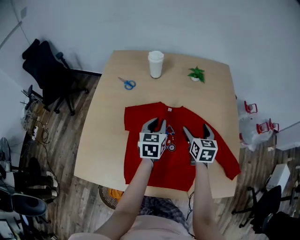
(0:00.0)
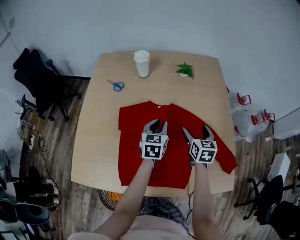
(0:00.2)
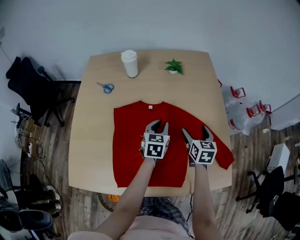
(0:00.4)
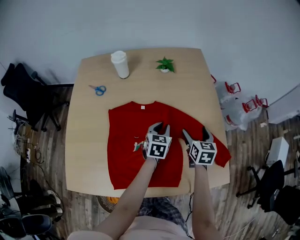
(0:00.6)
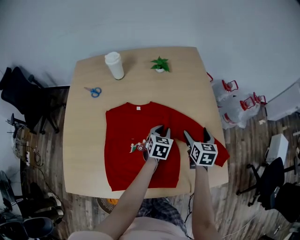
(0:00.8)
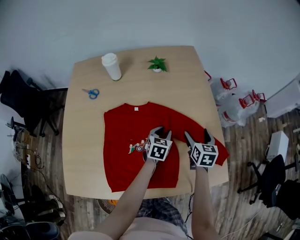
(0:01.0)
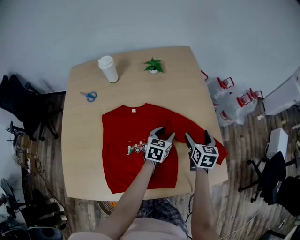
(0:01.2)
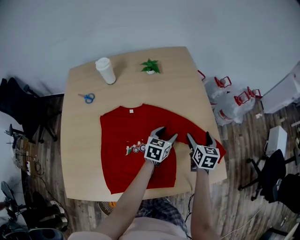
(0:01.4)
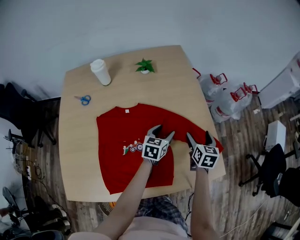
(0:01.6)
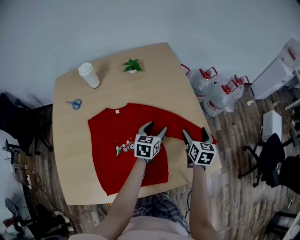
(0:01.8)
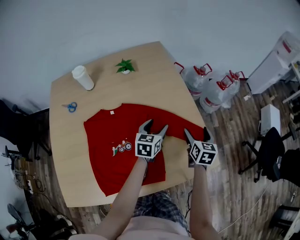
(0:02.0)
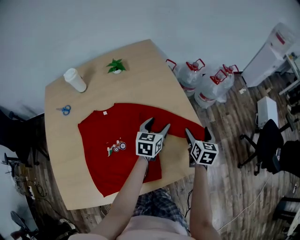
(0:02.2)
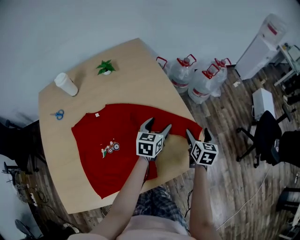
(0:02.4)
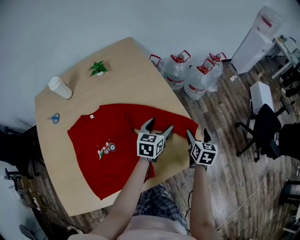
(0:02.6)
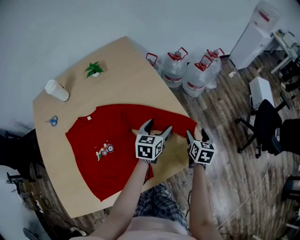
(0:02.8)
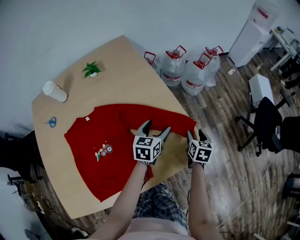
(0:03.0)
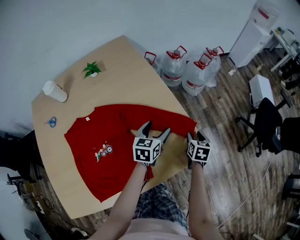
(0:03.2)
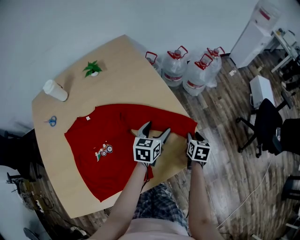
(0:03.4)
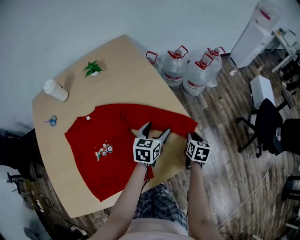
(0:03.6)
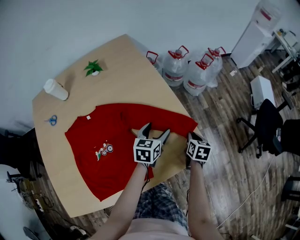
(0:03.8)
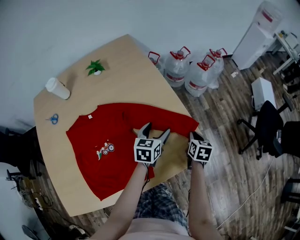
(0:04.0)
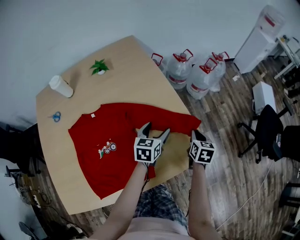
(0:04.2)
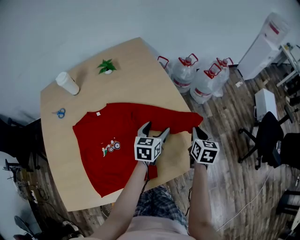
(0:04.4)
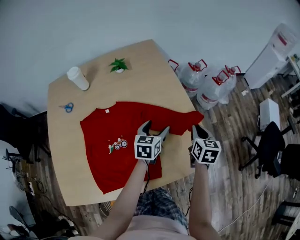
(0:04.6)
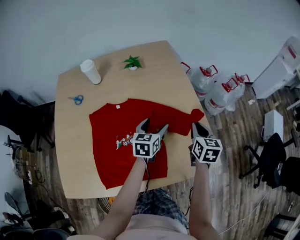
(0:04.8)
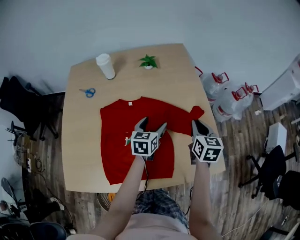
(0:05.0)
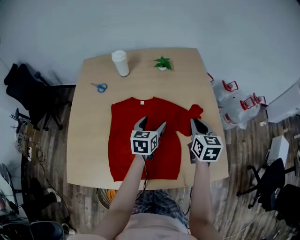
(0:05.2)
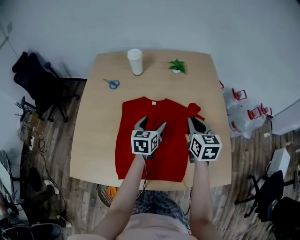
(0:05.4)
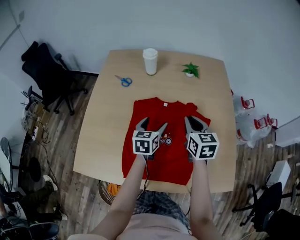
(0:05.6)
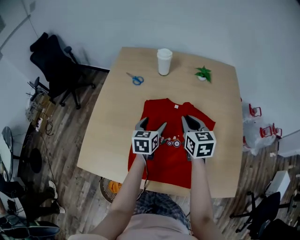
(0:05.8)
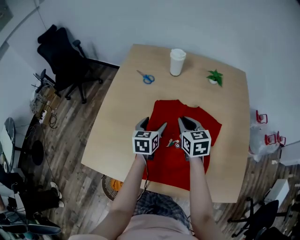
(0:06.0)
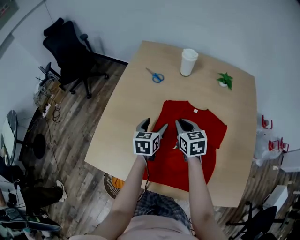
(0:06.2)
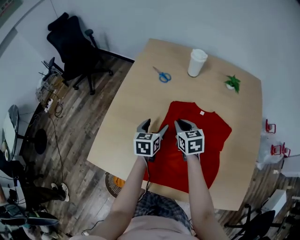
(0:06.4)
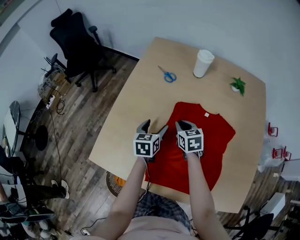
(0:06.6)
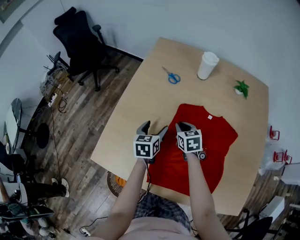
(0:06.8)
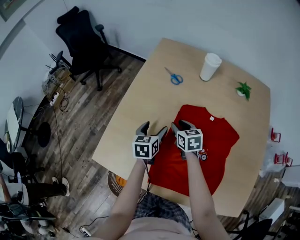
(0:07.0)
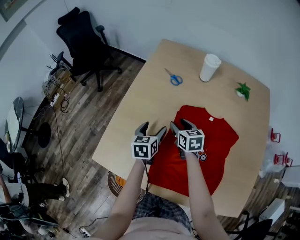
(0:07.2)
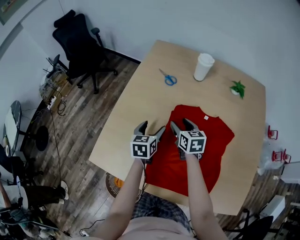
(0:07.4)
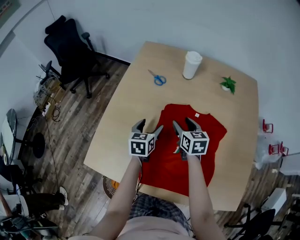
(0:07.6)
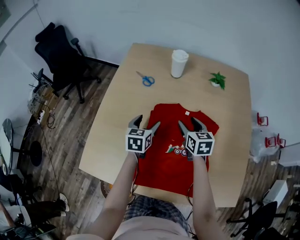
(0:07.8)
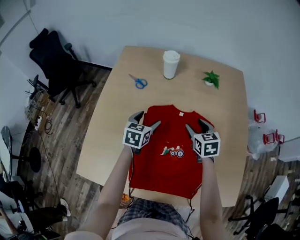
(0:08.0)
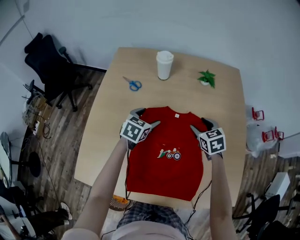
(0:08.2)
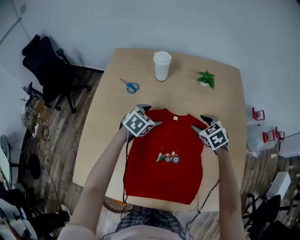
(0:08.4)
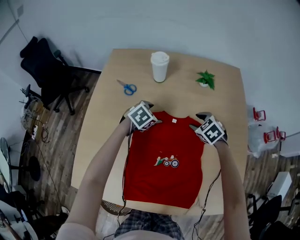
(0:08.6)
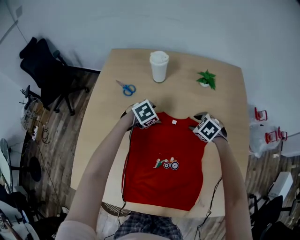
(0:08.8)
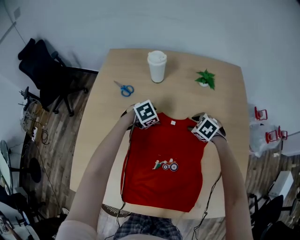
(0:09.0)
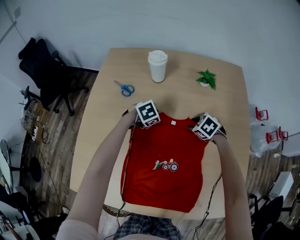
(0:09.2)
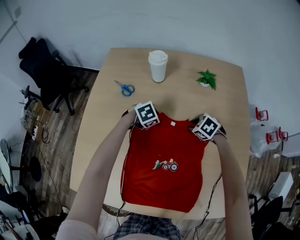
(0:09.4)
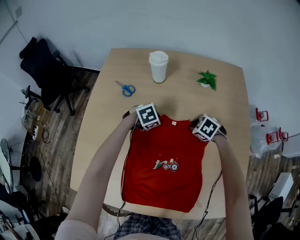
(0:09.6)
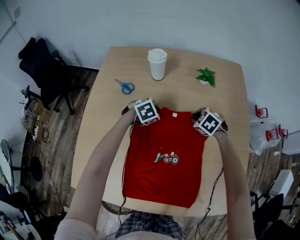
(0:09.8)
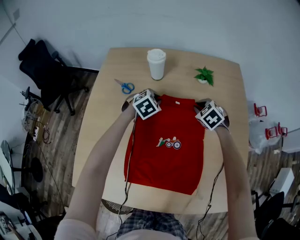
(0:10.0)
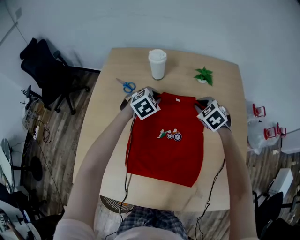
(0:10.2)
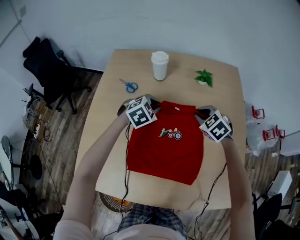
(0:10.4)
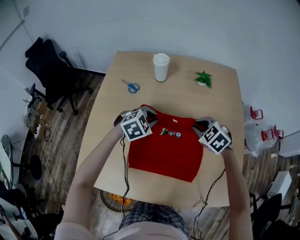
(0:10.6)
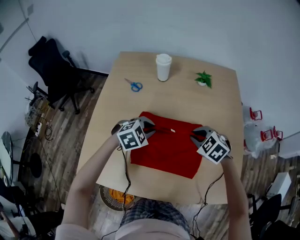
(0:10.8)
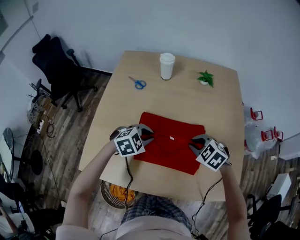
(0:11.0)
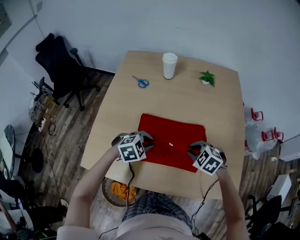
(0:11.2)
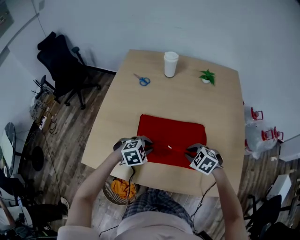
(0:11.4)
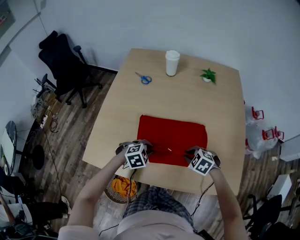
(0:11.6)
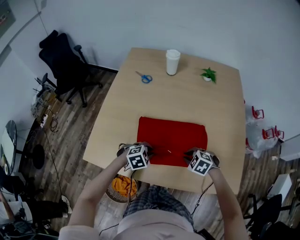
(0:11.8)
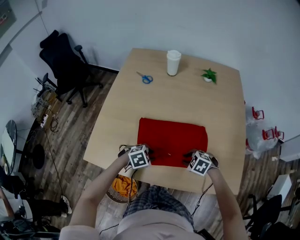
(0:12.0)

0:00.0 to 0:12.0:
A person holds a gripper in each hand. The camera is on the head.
0:00.0 to 0:01.6: The right gripper moves about 25 cm, and swivels about 30 degrees. The left gripper changes place by some 25 cm, swivels roughly 30 degrees, and opens its fingers.
0:01.6 to 0:03.0: The grippers both shift to the right by roughly 20 cm. The right gripper swivels approximately 20 degrees, and closes up.
0:03.0 to 0:04.4: The left gripper ends up about 5 cm from where it was. The right gripper travels upward and to the left by roughly 10 cm, and closes its fingers.
0:04.4 to 0:06.0: Both grippers are carried approximately 50 cm. The right gripper changes its angle by about 60 degrees. Meanwhile the left gripper swivels about 40 degrees.
0:06.0 to 0:07.6: The left gripper shifts some 5 cm to the left. Meanwhile the right gripper moves downward, roughly 5 cm, and opens.
0:07.6 to 0:09.0: The right gripper shifts roughly 25 cm to the right, downward and forward, and tilts its fingers about 30 degrees downward; the left gripper moves forward, to the right and downward, some 25 cm, and tips its fingers downward by roughly 30 degrees.
0:09.0 to 0:10.4: The two grippers go approximately 15 cm upward. The left gripper swivels approximately 30 degrees, and closes up.
0:10.4 to 0:12.0: The left gripper changes place by about 35 cm, and changes its angle by approximately 20 degrees, while the right gripper ends up approximately 35 cm from where it was, and turns by approximately 30 degrees.

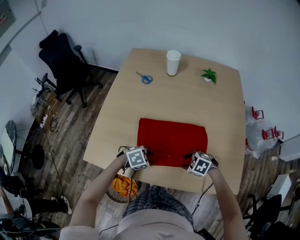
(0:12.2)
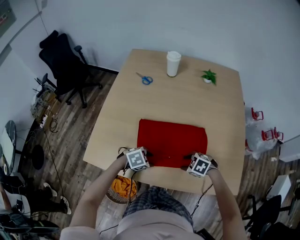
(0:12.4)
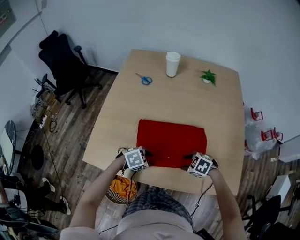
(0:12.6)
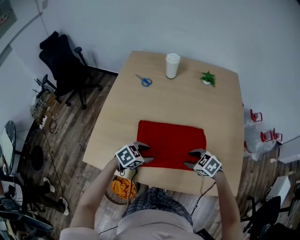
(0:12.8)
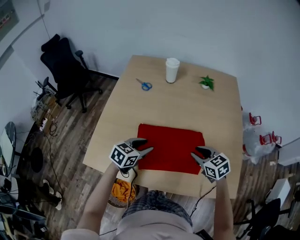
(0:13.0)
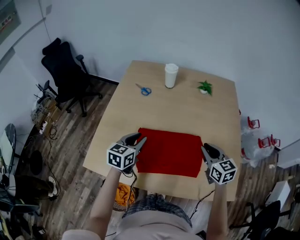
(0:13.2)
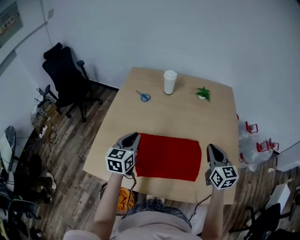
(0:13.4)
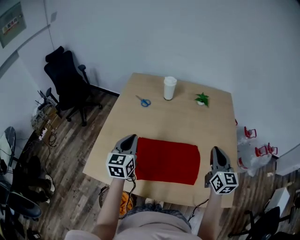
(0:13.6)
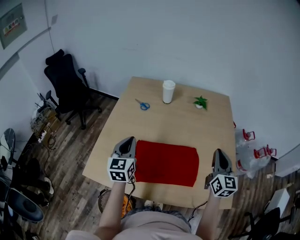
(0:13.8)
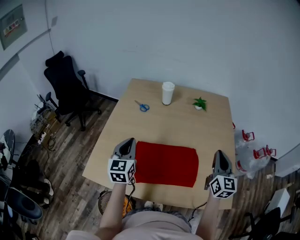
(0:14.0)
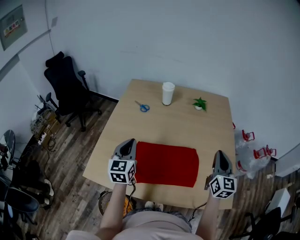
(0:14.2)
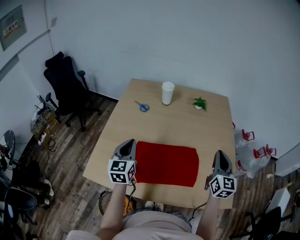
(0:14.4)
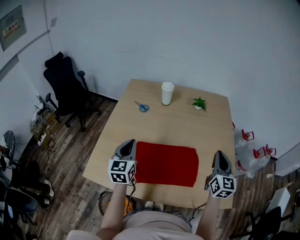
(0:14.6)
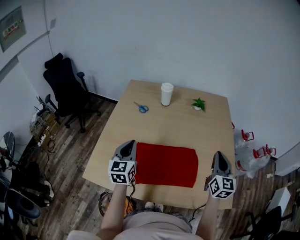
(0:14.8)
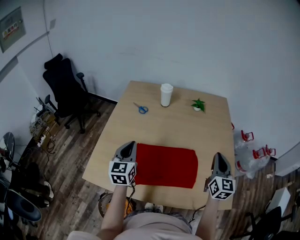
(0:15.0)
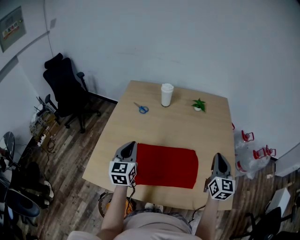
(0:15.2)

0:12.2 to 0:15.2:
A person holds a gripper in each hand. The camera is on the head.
0:12.2 to 0:13.8: The two grippers go approximately 25 cm upward. The left gripper tilts its fingers approximately 50 degrees upward, and closes its fingers. The right gripper angles its fingers upward, by some 60 degrees, and closes its fingers.
0:13.8 to 0:15.2: The grippers make only small movements.

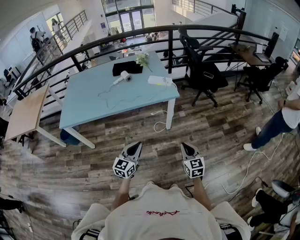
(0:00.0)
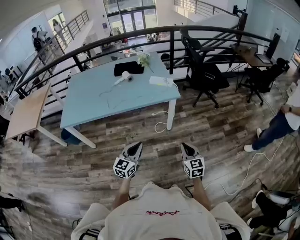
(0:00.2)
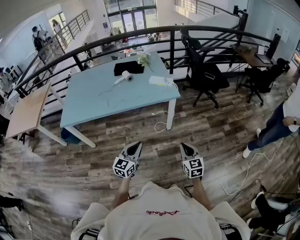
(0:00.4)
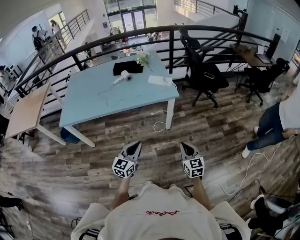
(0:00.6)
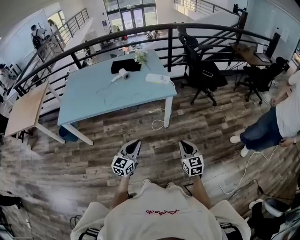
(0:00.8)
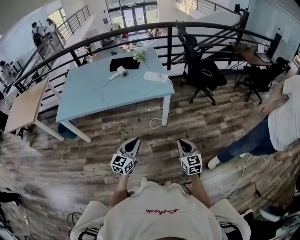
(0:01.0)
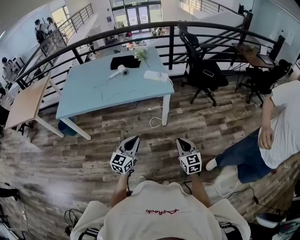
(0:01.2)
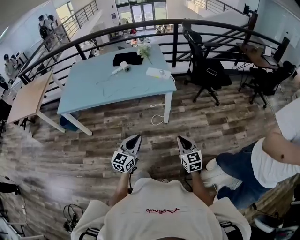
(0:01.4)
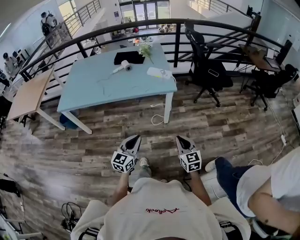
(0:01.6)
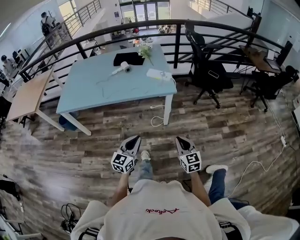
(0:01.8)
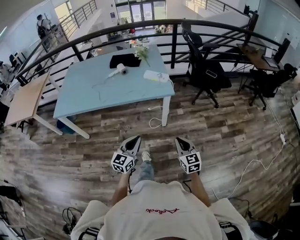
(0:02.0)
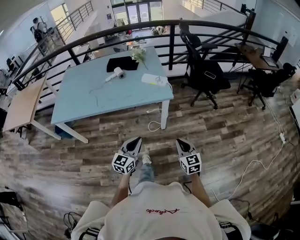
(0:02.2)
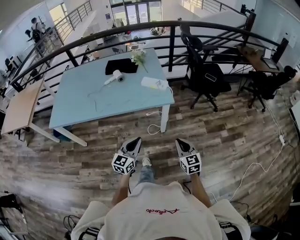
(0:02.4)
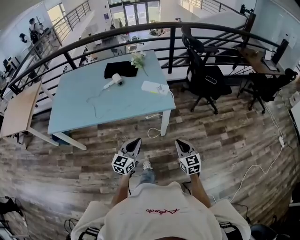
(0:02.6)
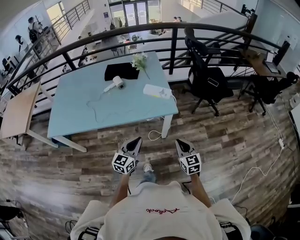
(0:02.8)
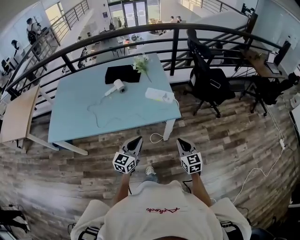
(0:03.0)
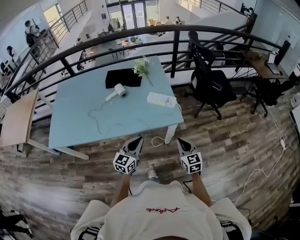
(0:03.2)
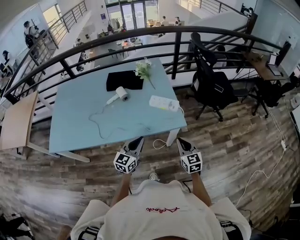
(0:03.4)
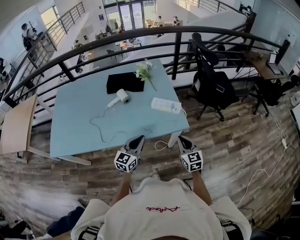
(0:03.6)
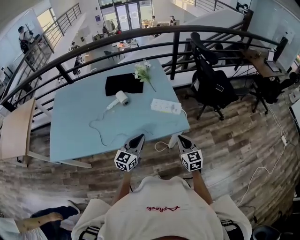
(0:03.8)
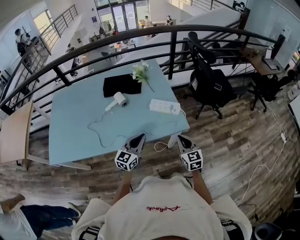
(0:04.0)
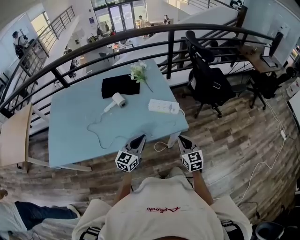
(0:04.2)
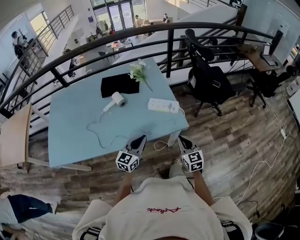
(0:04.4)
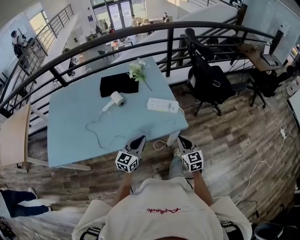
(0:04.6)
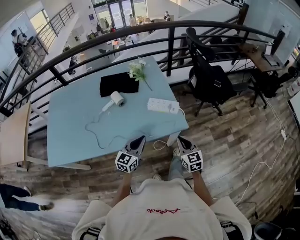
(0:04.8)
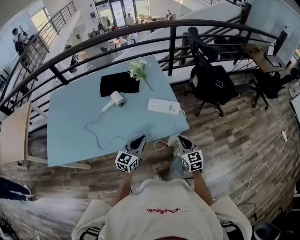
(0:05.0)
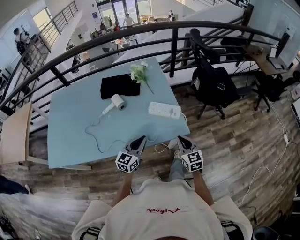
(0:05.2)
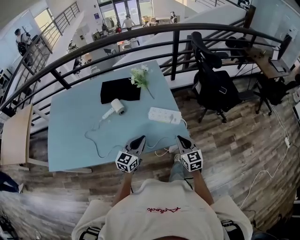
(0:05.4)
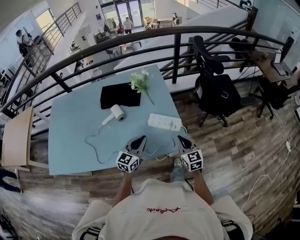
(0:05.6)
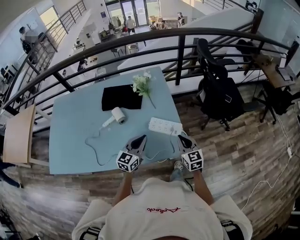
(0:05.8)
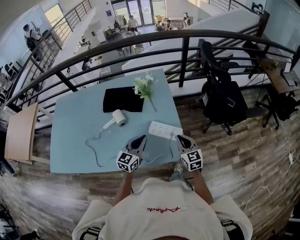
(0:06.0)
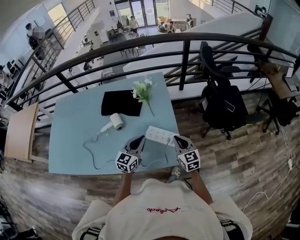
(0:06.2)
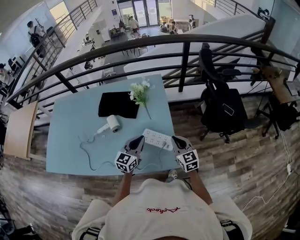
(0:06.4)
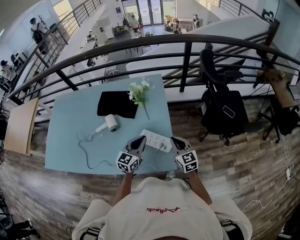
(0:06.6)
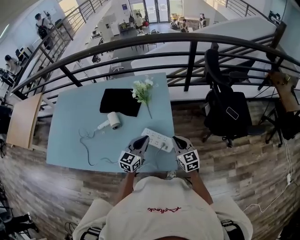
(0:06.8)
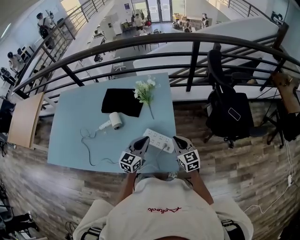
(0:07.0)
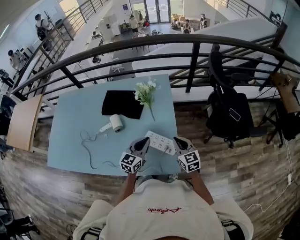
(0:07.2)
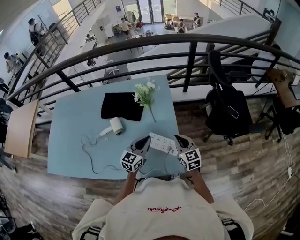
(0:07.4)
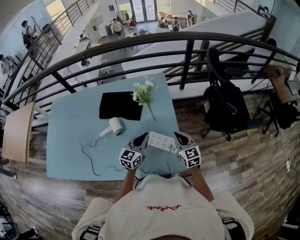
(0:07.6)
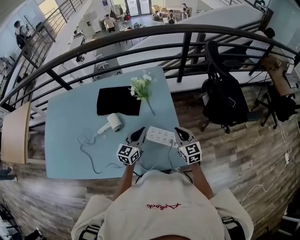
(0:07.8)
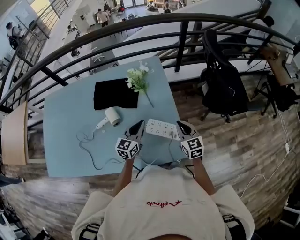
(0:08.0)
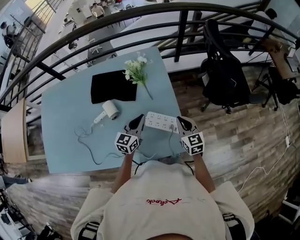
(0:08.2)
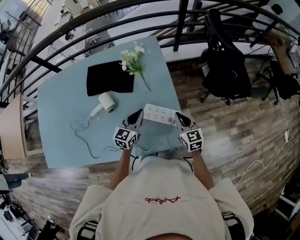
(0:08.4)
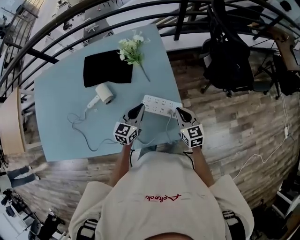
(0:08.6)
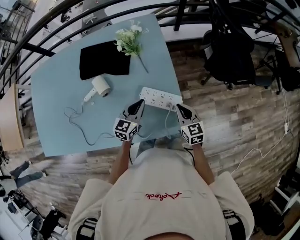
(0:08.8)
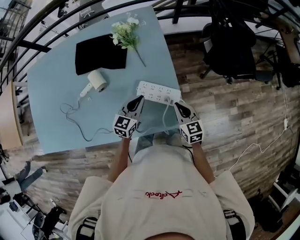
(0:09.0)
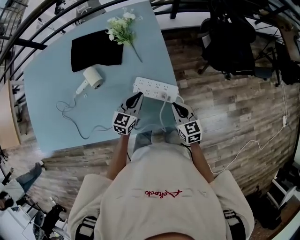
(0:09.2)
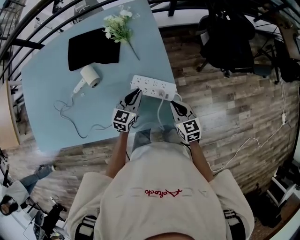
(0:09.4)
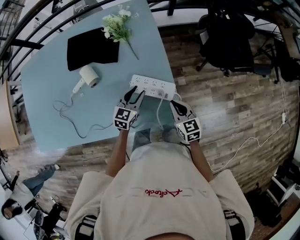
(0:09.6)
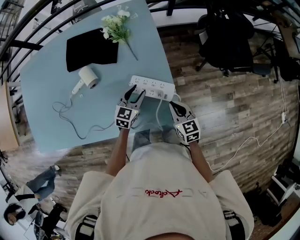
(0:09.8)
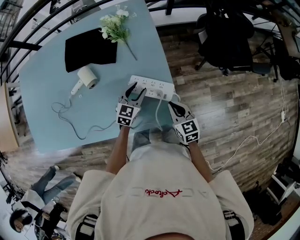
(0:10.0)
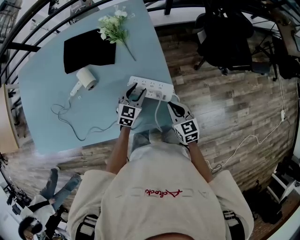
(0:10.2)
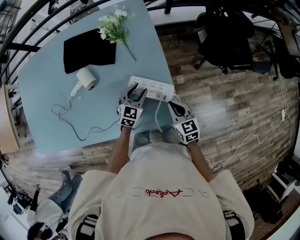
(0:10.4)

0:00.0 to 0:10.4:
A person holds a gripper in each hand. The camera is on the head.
0:00.0 to 0:01.4: Both grippers move to the right, approximately 5 cm.
0:01.4 to 0:03.0: The two grippers go some 30 cm forward.
0:03.0 to 0:04.4: The two grippers go about 15 cm forward and to the left.
0:04.4 to 0:06.0: The two grippers go roughly 20 cm forward.
0:06.0 to 0:07.4: Both grippers move forward, some 10 cm.
0:07.4 to 0:09.0: The right gripper shifts about 15 cm downward and backward; the left gripper goes some 10 cm downward.
0:09.0 to 0:10.4: The left gripper shifts about 5 cm downward, and opens up.
